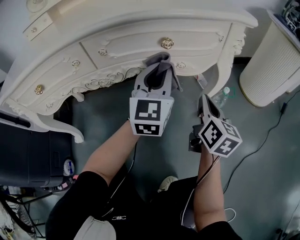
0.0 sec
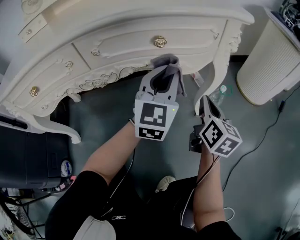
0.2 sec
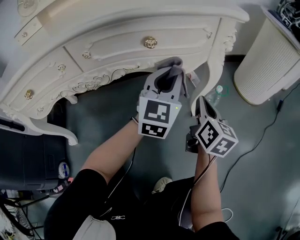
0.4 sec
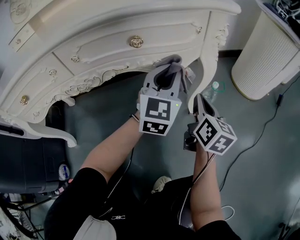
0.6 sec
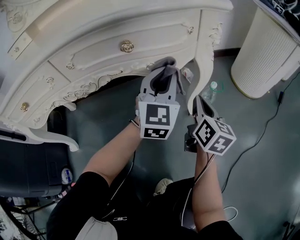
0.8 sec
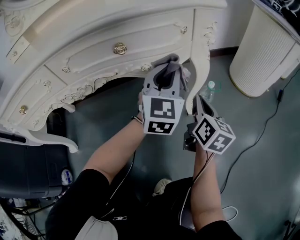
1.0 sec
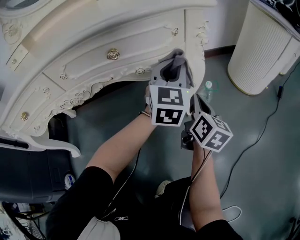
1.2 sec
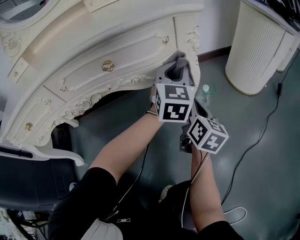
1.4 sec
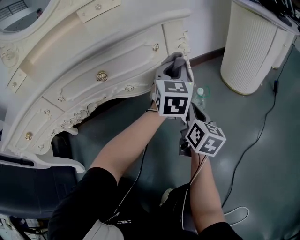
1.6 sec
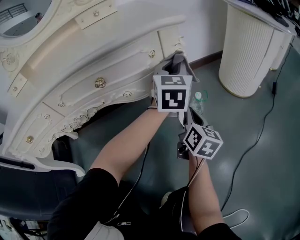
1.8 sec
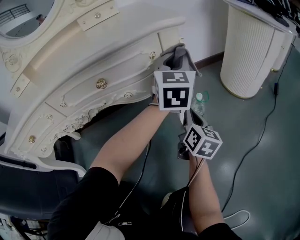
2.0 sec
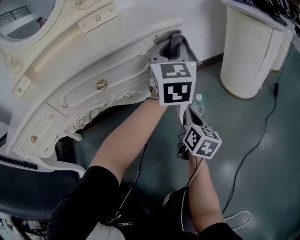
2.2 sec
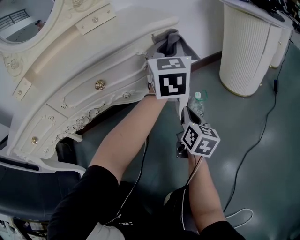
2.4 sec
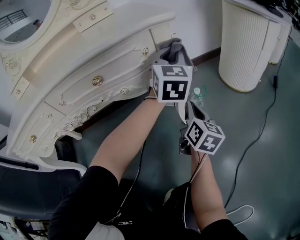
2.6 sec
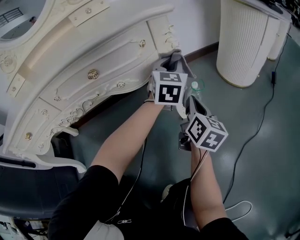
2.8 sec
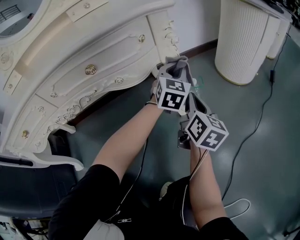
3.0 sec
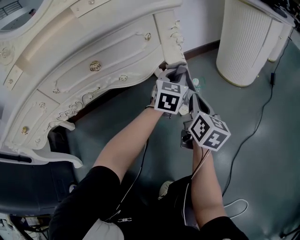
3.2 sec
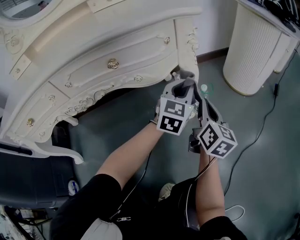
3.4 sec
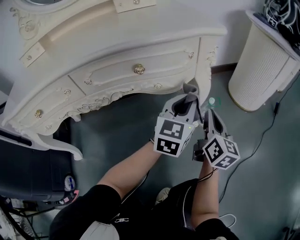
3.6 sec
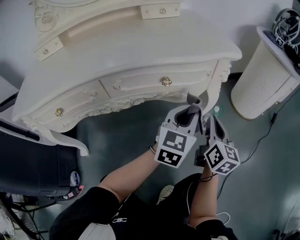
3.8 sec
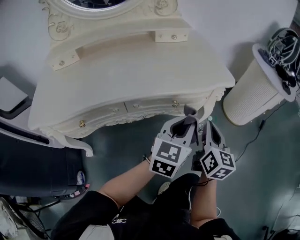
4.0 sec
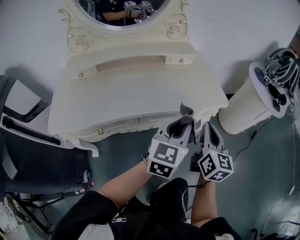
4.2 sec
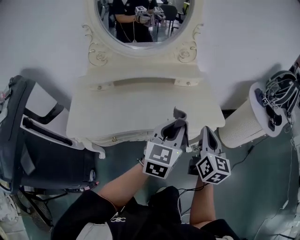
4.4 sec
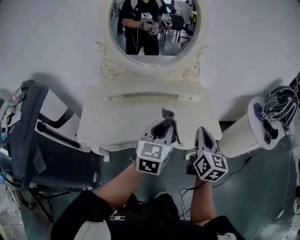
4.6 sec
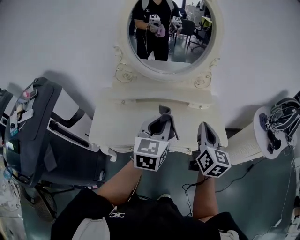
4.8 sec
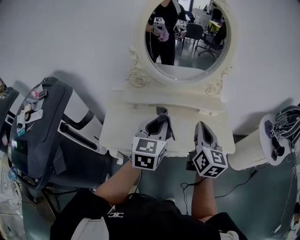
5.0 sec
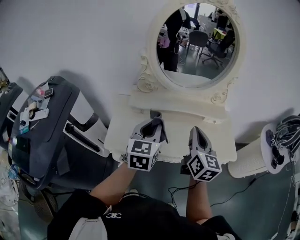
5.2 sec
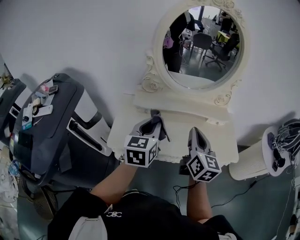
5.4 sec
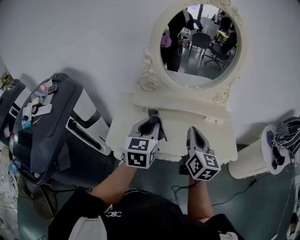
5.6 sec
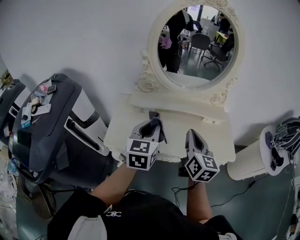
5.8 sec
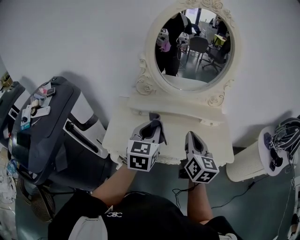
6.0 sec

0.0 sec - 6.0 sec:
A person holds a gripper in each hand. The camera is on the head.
0.0 sec - 1.6 sec: The right gripper goes some 10 cm to the right. Meanwhile the left gripper shifts approximately 25 cm to the right and forward.
1.6 sec - 3.0 sec: The left gripper travels downward by some 5 cm.
3.0 sec - 4.4 sec: The left gripper goes approximately 60 cm upward, to the left and backward, and changes its angle by approximately 30 degrees. The right gripper goes approximately 50 cm upward and to the left, and swivels approximately 30 degrees.
4.4 sec - 6.0 sec: The two grippers go roughly 30 cm to the left and upward. The right gripper changes its angle by roughly 20 degrees. The left gripper turns by about 20 degrees.

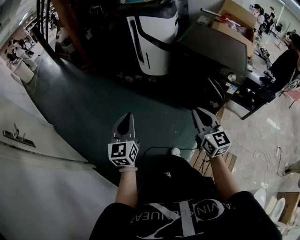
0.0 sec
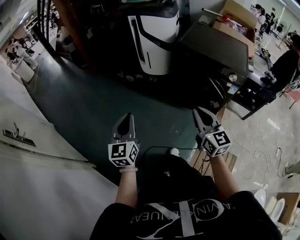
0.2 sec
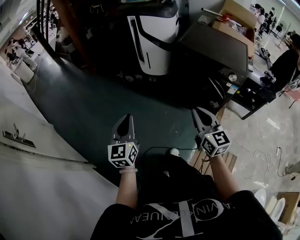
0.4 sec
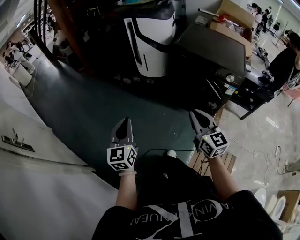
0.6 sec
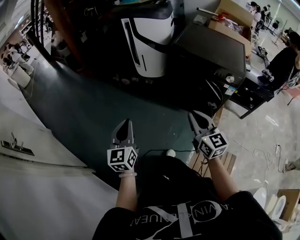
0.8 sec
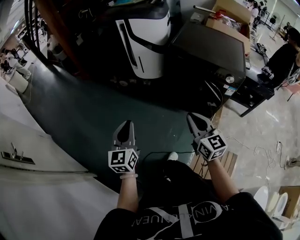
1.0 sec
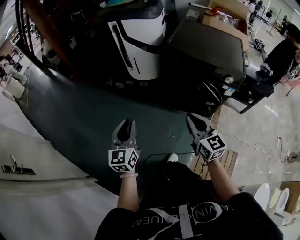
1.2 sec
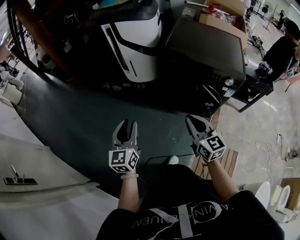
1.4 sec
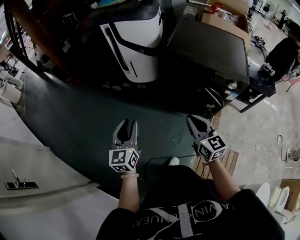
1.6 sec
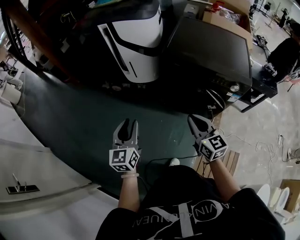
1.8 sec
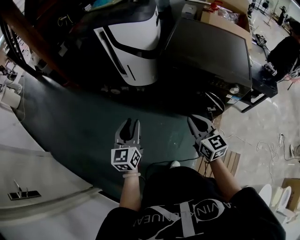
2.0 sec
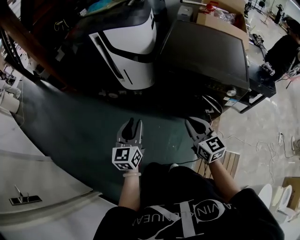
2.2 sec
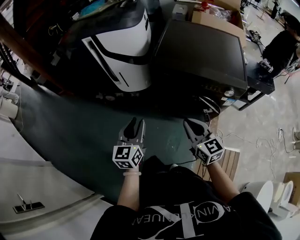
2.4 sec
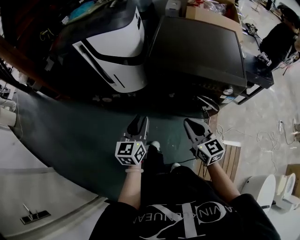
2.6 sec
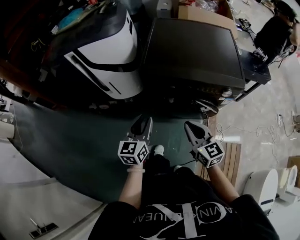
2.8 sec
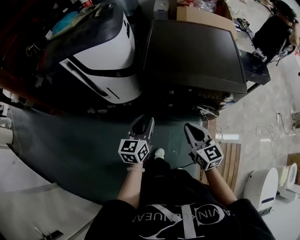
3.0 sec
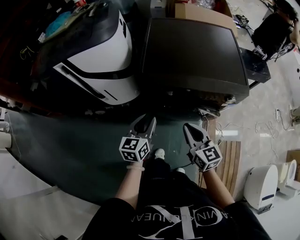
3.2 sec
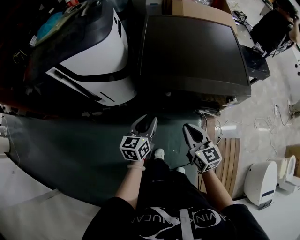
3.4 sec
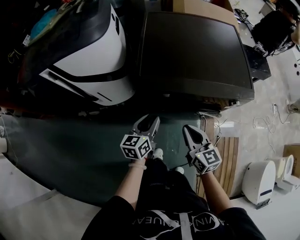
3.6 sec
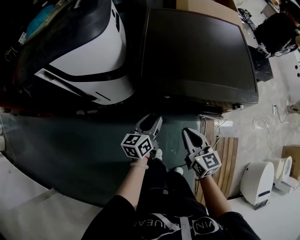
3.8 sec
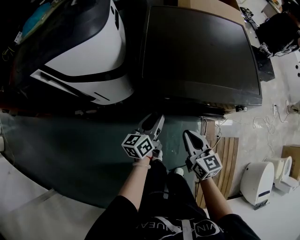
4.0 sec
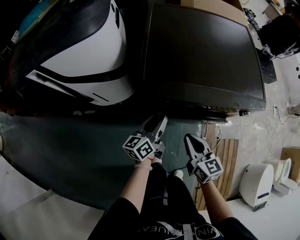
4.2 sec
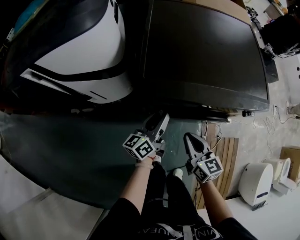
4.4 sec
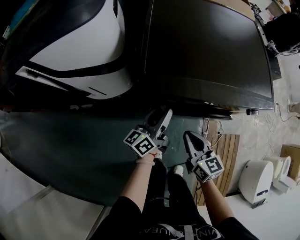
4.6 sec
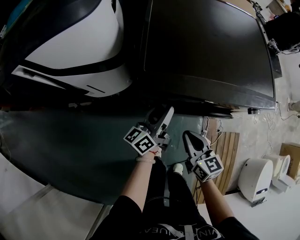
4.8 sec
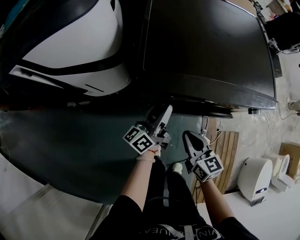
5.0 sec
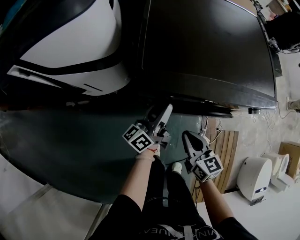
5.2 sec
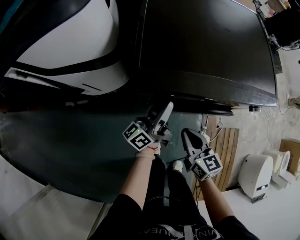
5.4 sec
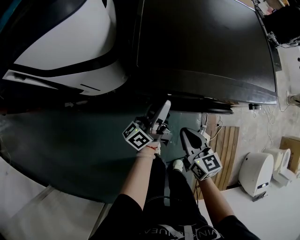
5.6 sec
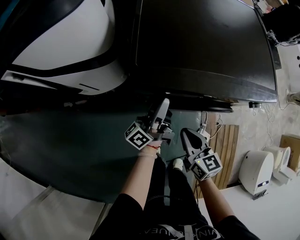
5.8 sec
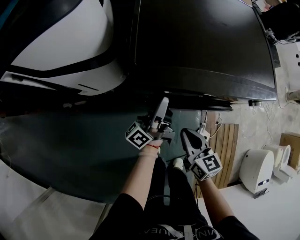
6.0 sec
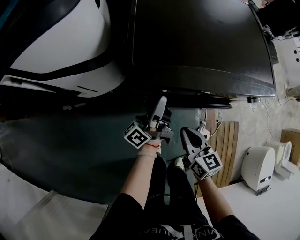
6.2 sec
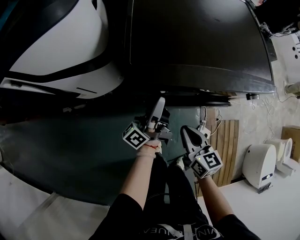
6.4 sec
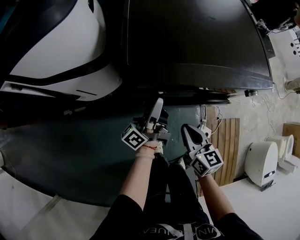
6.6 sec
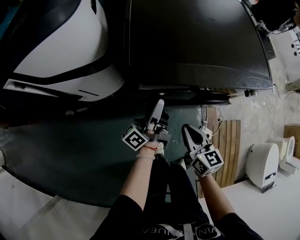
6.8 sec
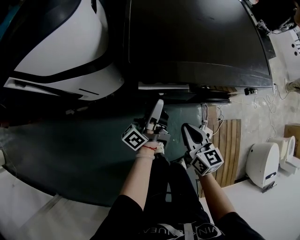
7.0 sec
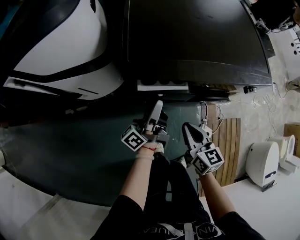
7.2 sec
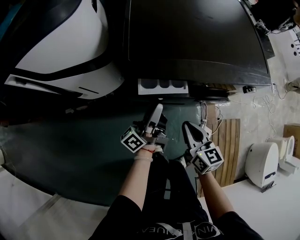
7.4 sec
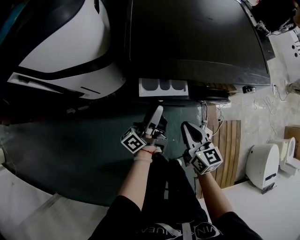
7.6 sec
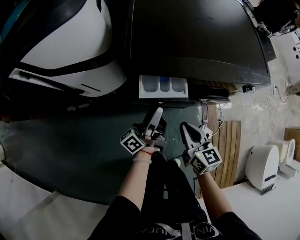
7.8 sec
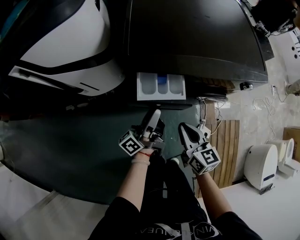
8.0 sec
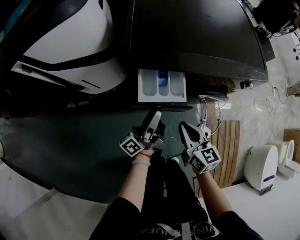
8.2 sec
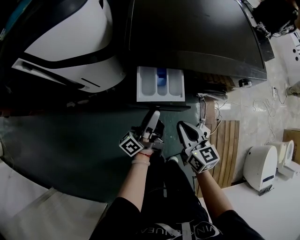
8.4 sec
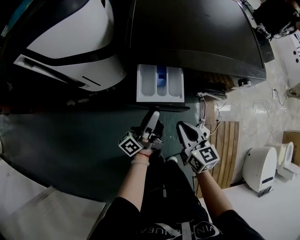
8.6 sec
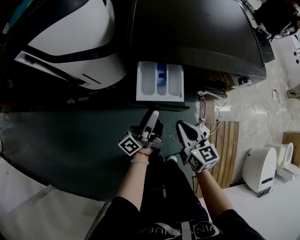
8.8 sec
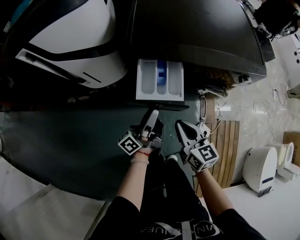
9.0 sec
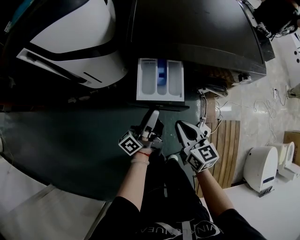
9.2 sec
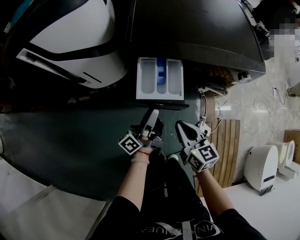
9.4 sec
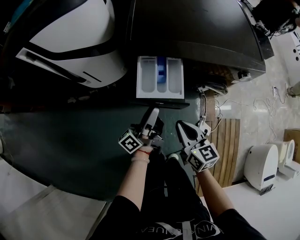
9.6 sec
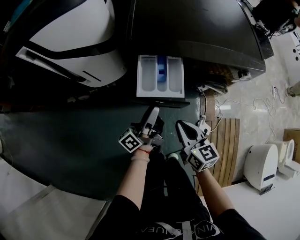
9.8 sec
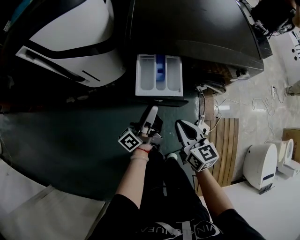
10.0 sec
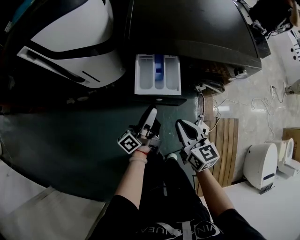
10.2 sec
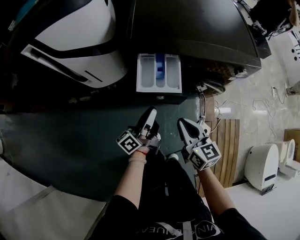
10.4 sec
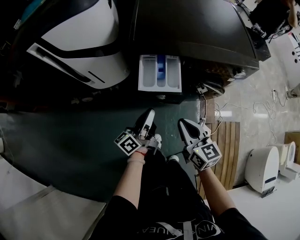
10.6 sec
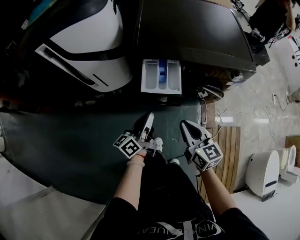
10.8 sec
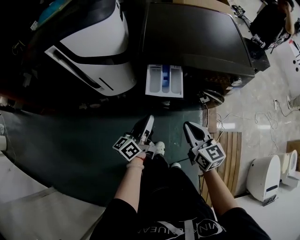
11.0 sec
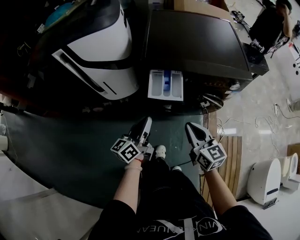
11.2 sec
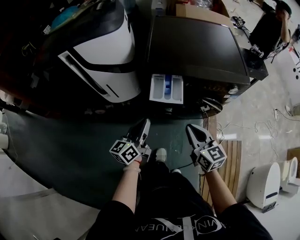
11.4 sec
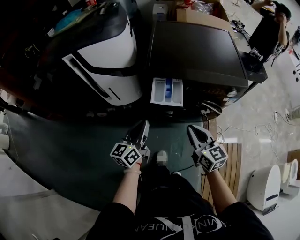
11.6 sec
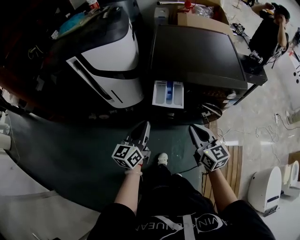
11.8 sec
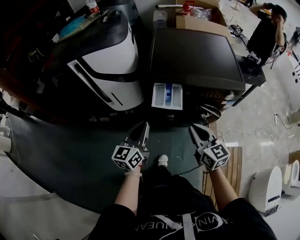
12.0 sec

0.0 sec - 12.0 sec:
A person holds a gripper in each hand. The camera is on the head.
0.0 sec - 1.6 sec: The two grippers go about 15 cm forward. The left gripper opens its fingers.
1.6 sec - 3.0 sec: The left gripper is displaced forward and to the right by some 30 cm, and turns by about 30 degrees. Meanwhile the right gripper travels forward and to the right by roughly 15 cm.
3.0 sec - 4.4 sec: The left gripper goes about 20 cm forward and downward, and changes its angle by some 40 degrees, while the right gripper moves downward and forward, roughly 15 cm.
4.4 sec - 6.0 sec: The right gripper ends up about 5 cm from where it was; the left gripper rotates approximately 30 degrees.
6.0 sec - 7.6 sec: The left gripper heads backward, covering roughly 5 cm.
7.6 sec - 9.0 sec: The two grippers go about 5 cm backward.
9.0 sec - 10.4 sec: The grippers stay close to where they were, moving slightly.
10.4 sec - 12.0 sec: The two grippers go about 15 cm upward. The left gripper rotates around the line of its fingers by roughly 50 degrees, clockwise from behind.

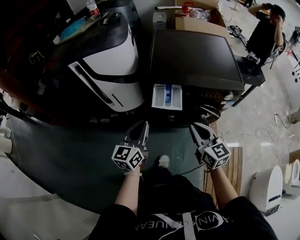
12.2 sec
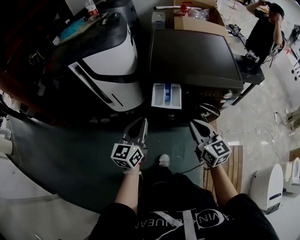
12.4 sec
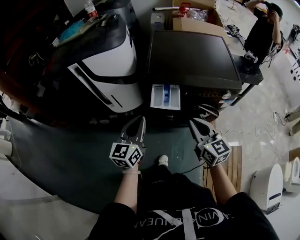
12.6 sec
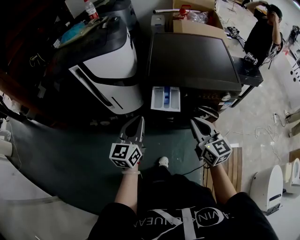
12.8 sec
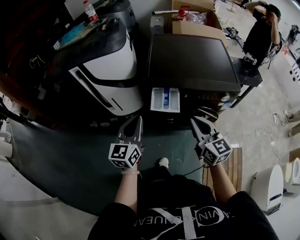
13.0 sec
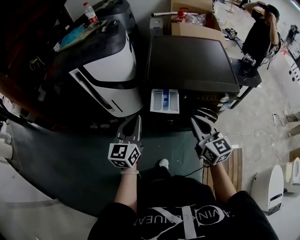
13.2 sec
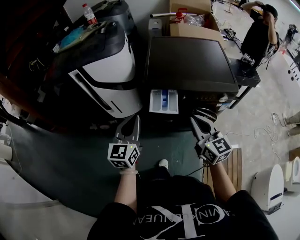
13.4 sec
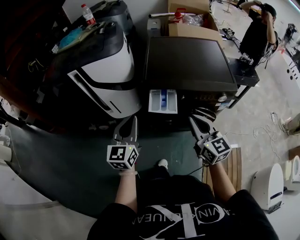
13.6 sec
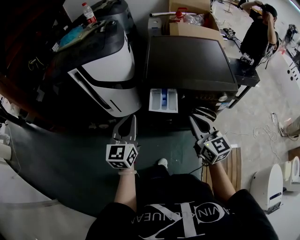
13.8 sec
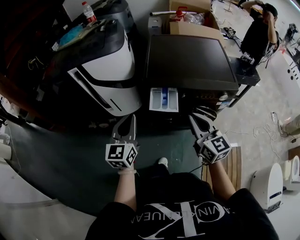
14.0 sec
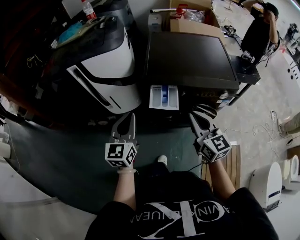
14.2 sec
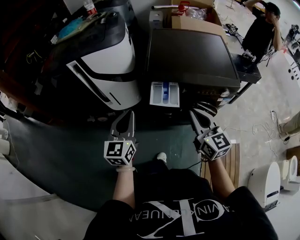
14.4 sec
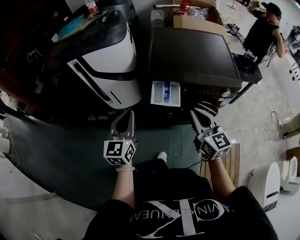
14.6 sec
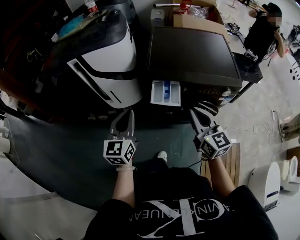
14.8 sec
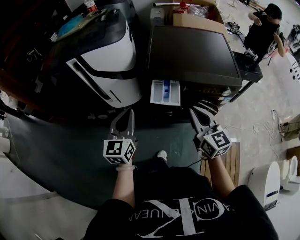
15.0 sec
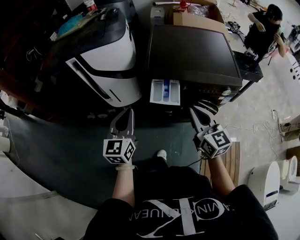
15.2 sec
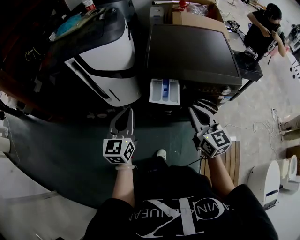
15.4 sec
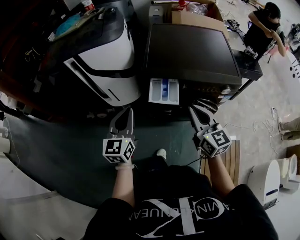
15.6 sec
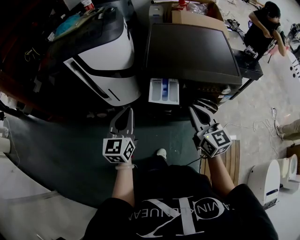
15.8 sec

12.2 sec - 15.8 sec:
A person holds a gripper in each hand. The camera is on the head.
12.2 sec - 14.0 sec: Both grippers travel together upward, some 5 cm.
14.0 sec - 15.8 sec: The grippers move only a little.

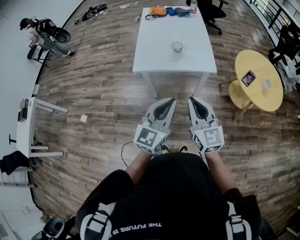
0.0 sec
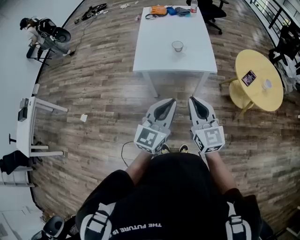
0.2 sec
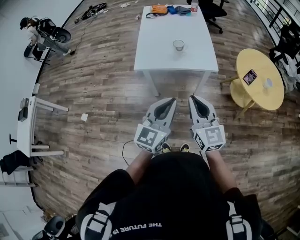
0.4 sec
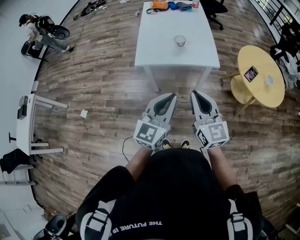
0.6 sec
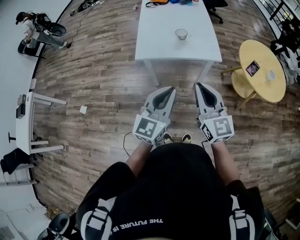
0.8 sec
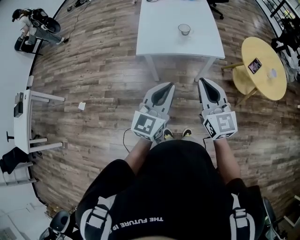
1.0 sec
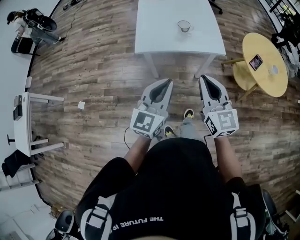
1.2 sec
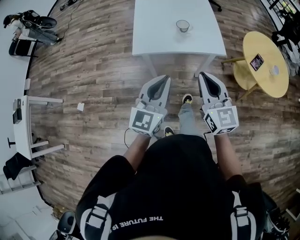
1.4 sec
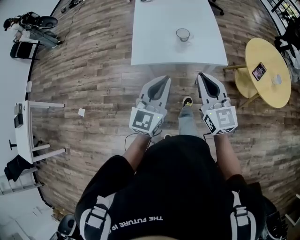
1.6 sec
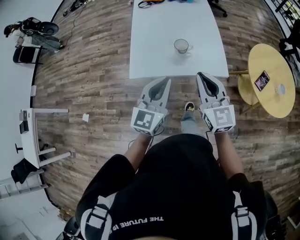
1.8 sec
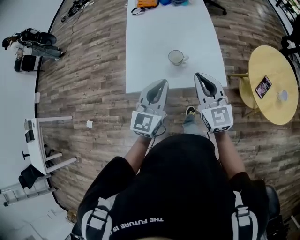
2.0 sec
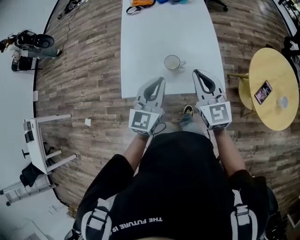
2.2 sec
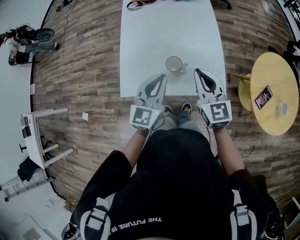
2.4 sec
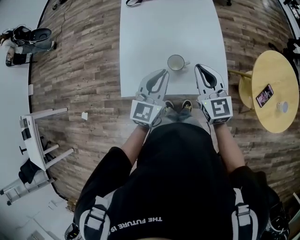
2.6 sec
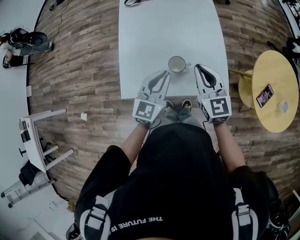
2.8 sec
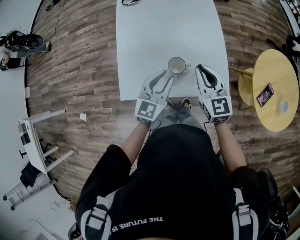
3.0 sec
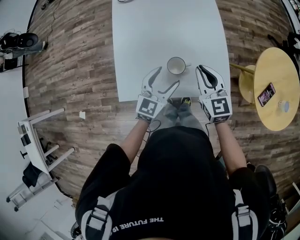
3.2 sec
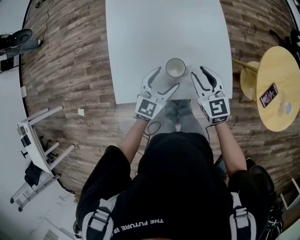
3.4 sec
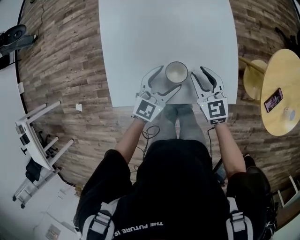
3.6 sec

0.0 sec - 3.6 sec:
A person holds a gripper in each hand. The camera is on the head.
0.0 sec - 1.8 sec: Both grippers move forward, approximately 25 cm.
1.8 sec - 3.6 sec: Both grippers travel together forward and downward, roughly 35 cm. The left gripper turns by approximately 20 degrees, and opens up; the right gripper swivels some 30 degrees, and opens up.
